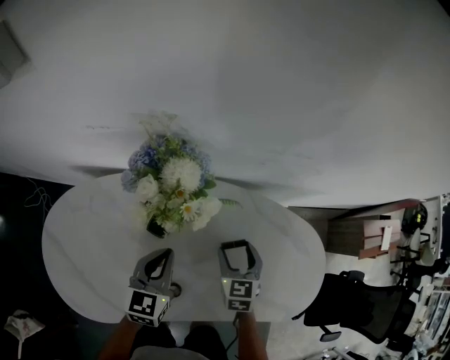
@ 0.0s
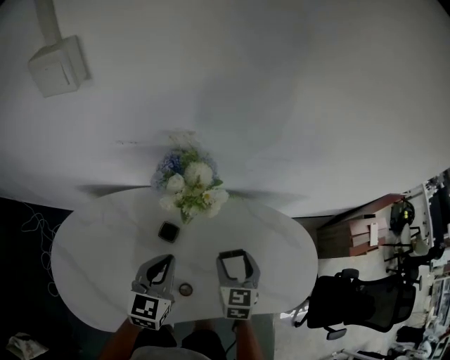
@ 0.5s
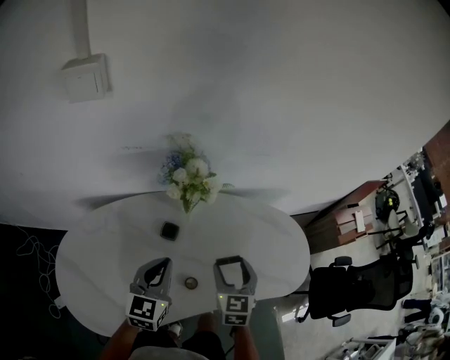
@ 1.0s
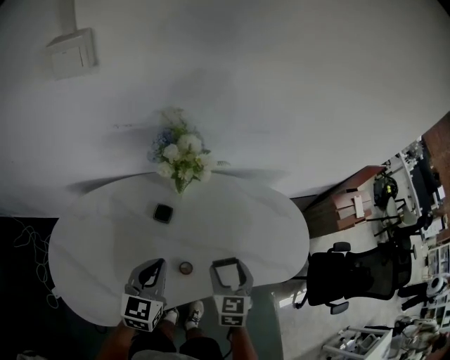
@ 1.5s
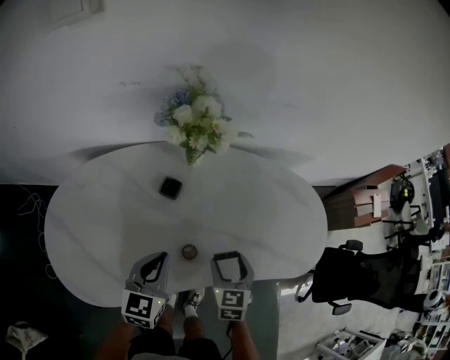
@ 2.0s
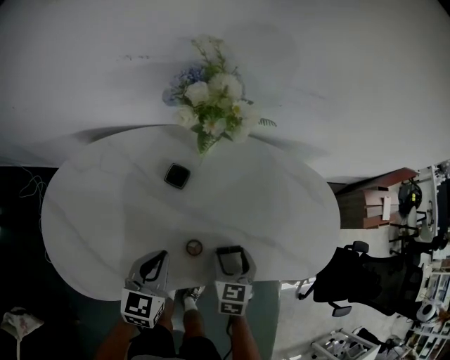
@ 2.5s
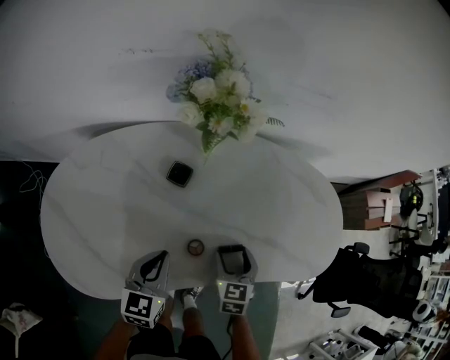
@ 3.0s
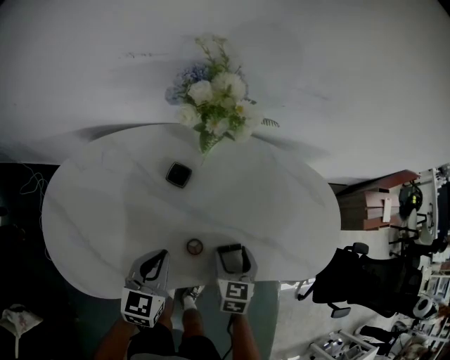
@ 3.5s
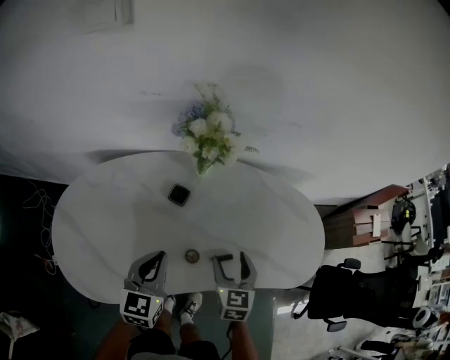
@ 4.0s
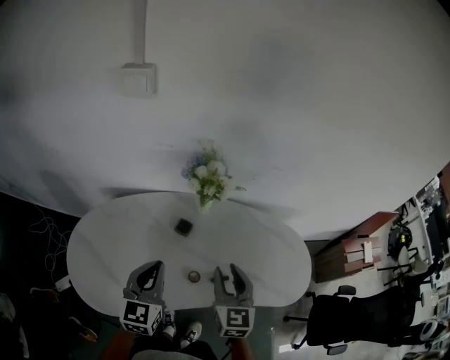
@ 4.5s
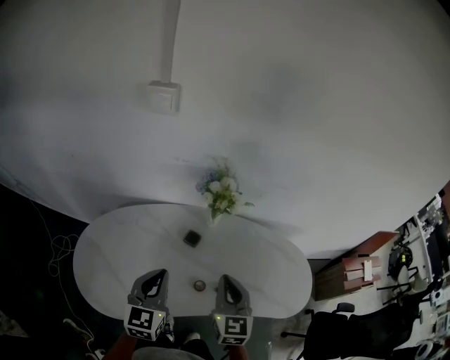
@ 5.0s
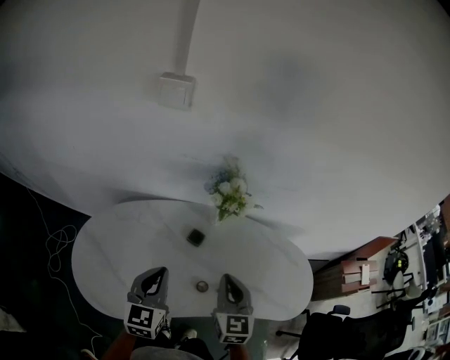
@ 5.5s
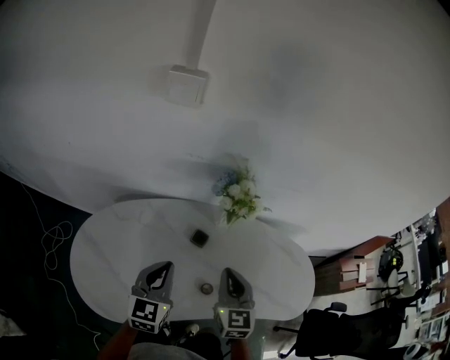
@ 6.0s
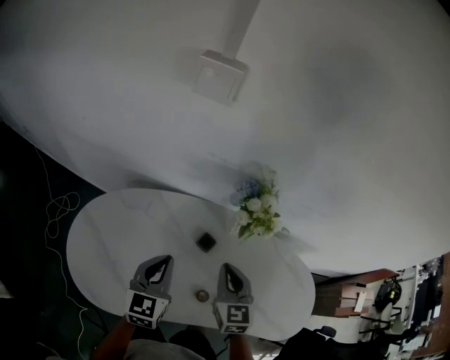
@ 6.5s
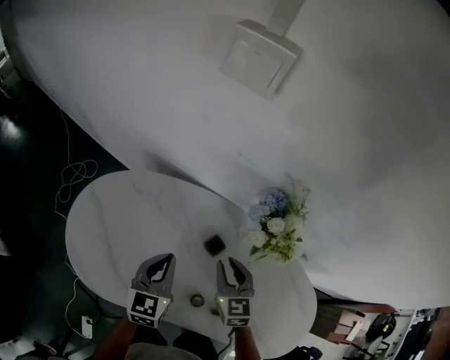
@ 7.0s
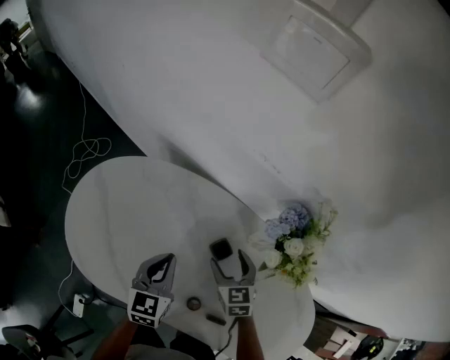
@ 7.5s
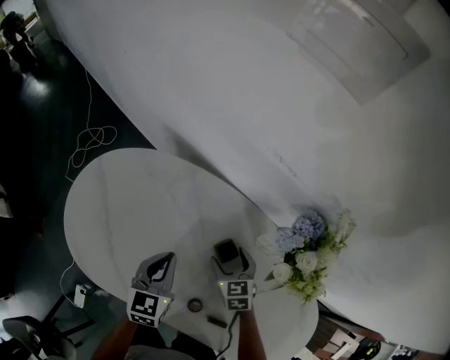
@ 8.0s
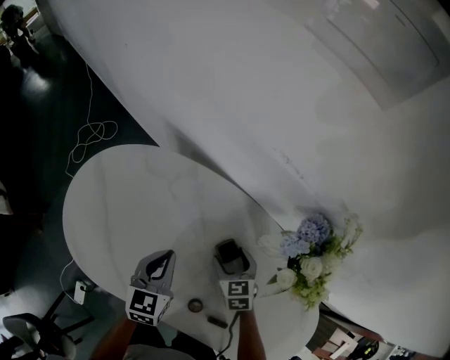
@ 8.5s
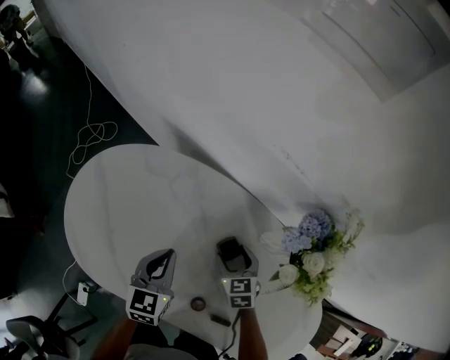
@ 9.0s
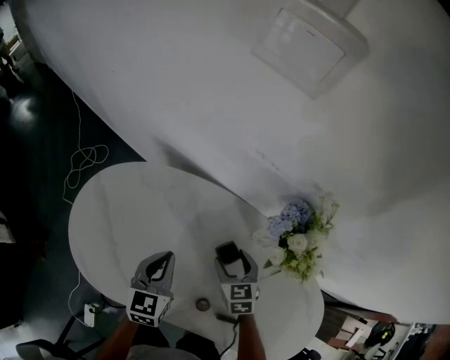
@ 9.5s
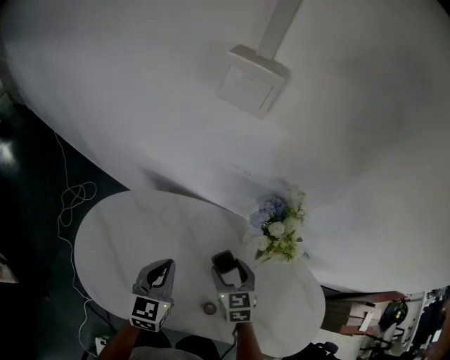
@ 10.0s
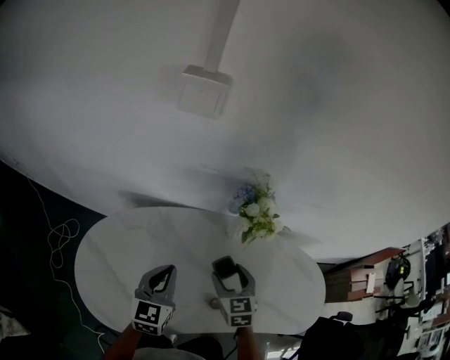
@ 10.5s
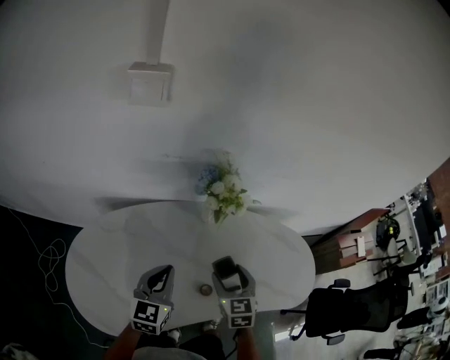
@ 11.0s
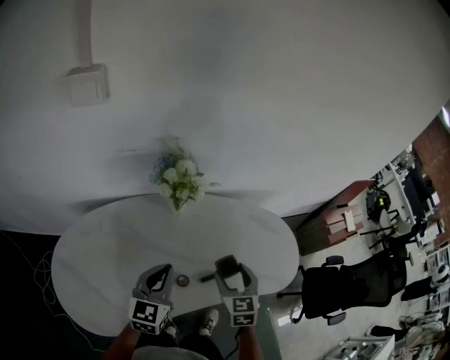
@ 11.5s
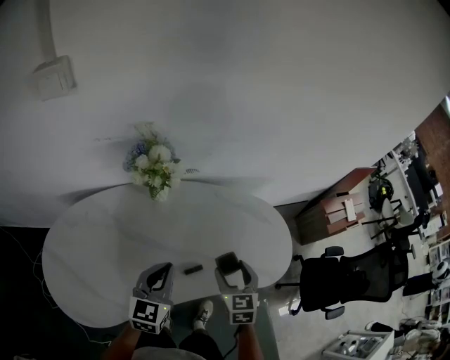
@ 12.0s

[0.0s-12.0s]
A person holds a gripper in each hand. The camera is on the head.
0.0s to 2.0s: Both grippers move backward, some 20 cm.
2.0s to 4.0s: The right gripper shifts by about 5 cm.
4.0s to 6.0s: The left gripper is displaced upward and to the left by about 15 cm. The right gripper shifts some 20 cm upward and to the left, and closes up.
6.0s to 8.0s: The left gripper shifts about 15 cm downward, and swivels approximately 40 degrees, while the right gripper is displaced downward by about 25 cm, changes its angle by about 50 degrees, and opens.
8.0s to 10.0s: Both grippers move upward, some 10 cm.
10.0s to 12.0s: The left gripper changes place by about 25 cm, and rotates approximately 40 degrees; the right gripper shifts by some 35 cm, and changes its angle by about 40 degrees.

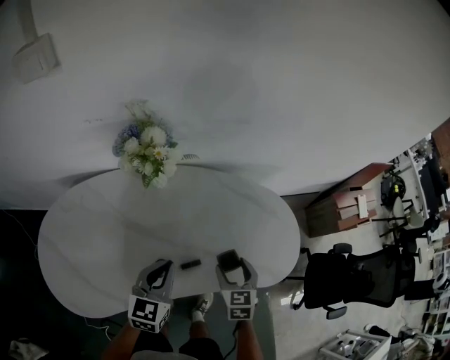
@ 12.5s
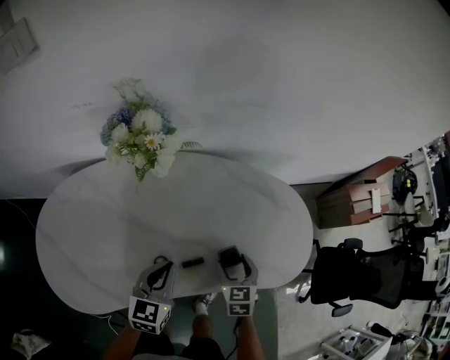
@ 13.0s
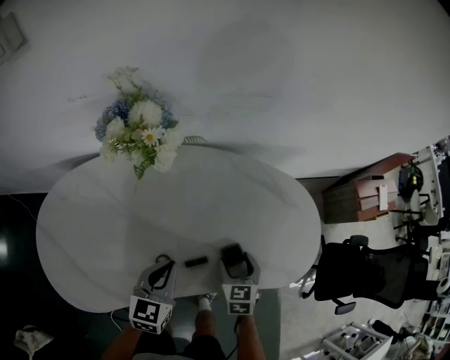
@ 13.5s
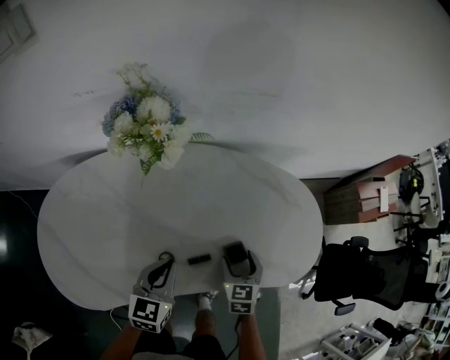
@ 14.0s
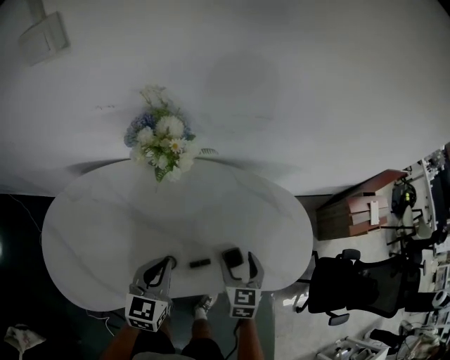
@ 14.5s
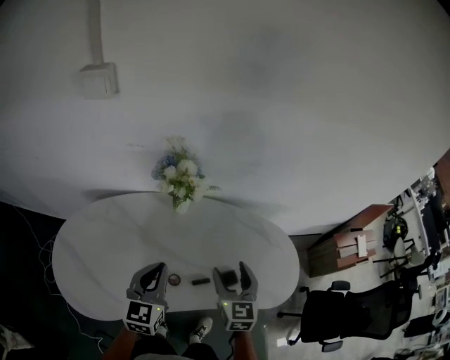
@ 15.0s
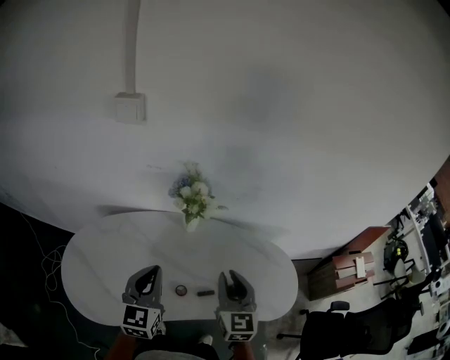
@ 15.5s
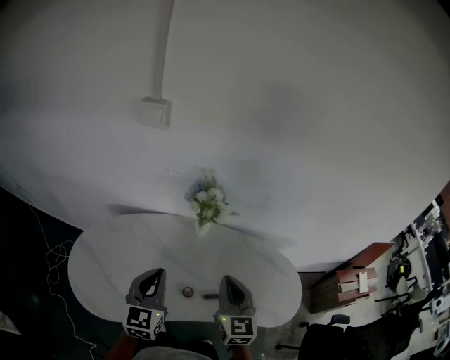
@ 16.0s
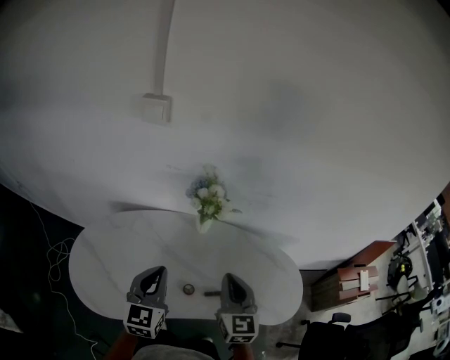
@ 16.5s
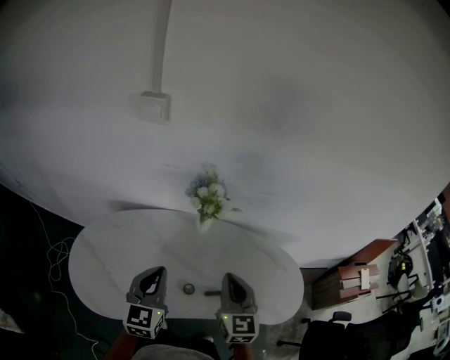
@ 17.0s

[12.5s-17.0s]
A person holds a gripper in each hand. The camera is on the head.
12.5s to 14.5s: The right gripper travels downward and back again, roughly 10 cm each way.
14.5s to 17.0s: The two grippers go about 25 cm upward and to the left. The left gripper changes its angle by approximately 20 degrees, while the right gripper turns by some 30 degrees, and closes up.

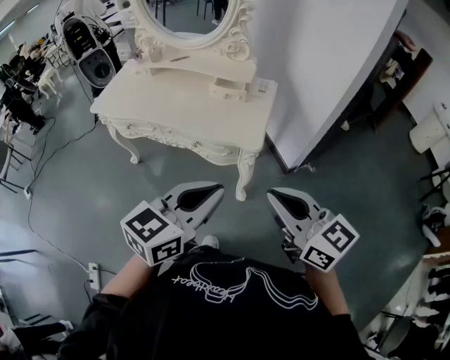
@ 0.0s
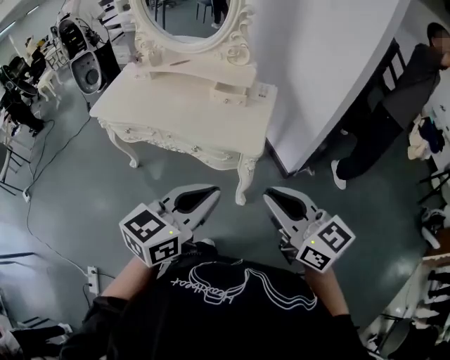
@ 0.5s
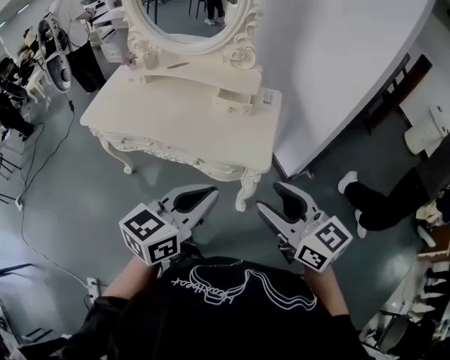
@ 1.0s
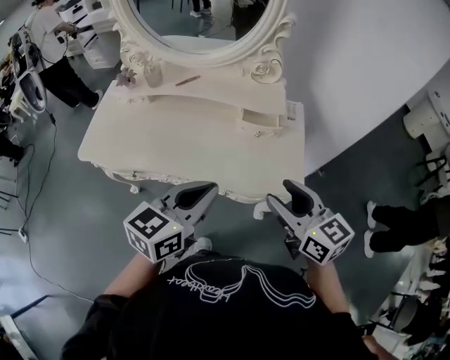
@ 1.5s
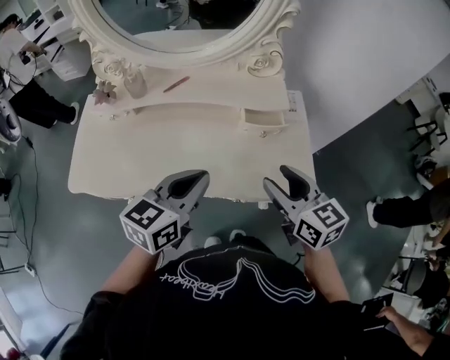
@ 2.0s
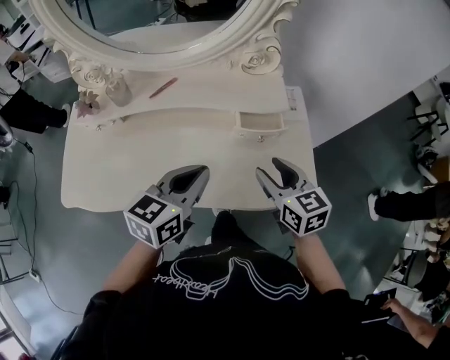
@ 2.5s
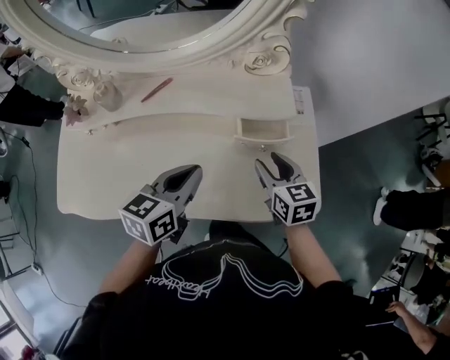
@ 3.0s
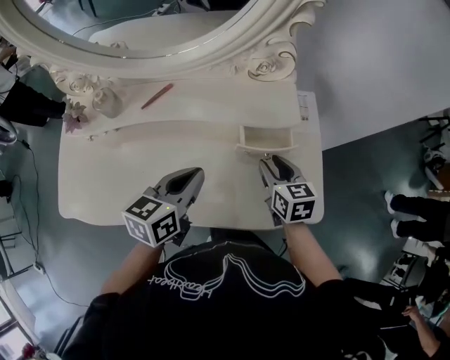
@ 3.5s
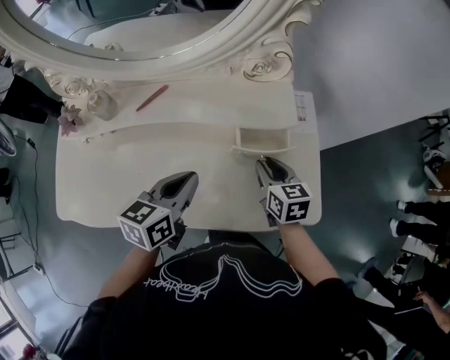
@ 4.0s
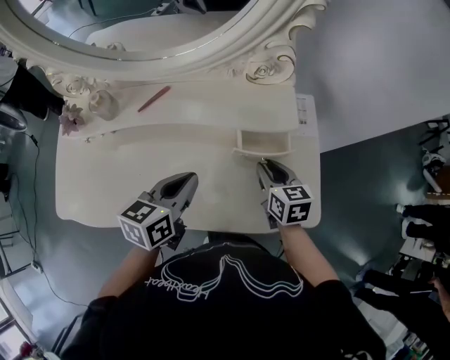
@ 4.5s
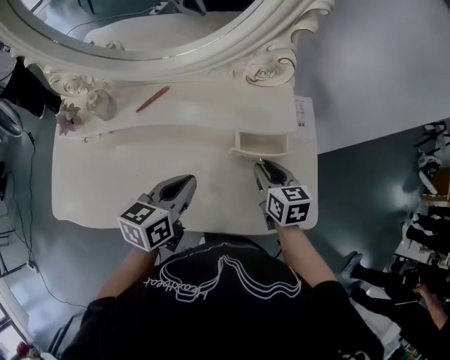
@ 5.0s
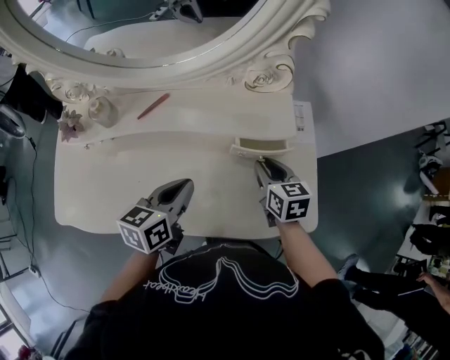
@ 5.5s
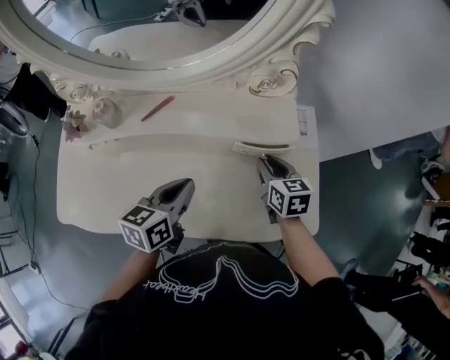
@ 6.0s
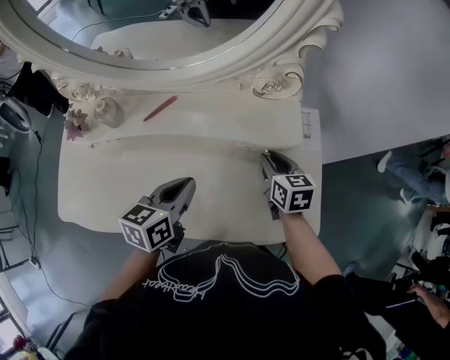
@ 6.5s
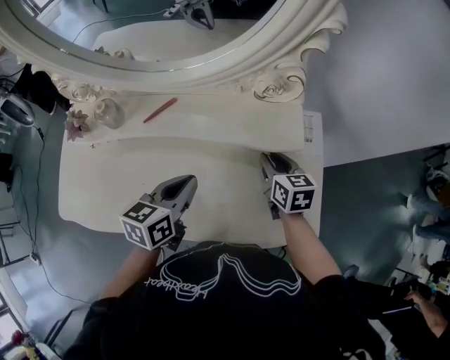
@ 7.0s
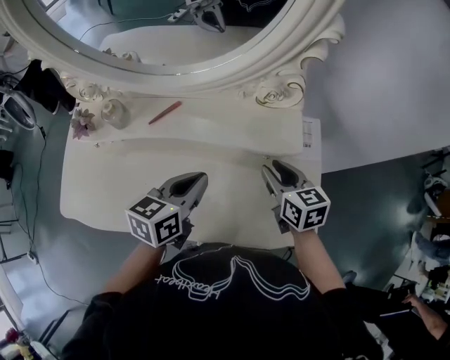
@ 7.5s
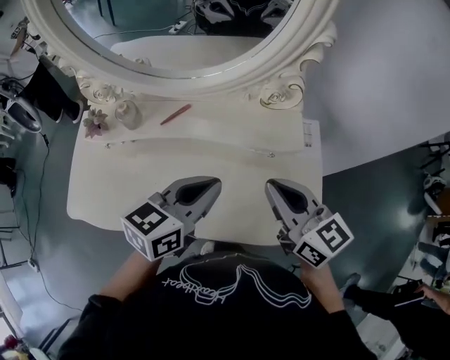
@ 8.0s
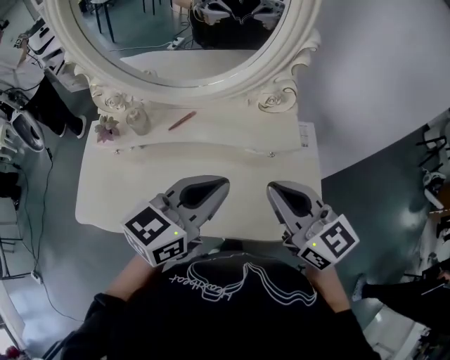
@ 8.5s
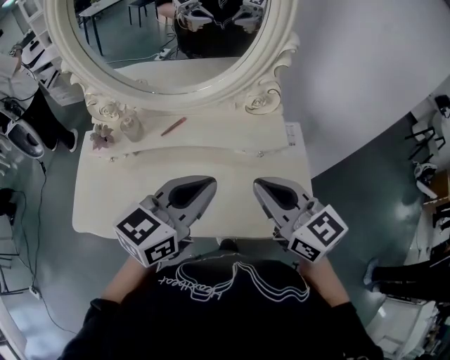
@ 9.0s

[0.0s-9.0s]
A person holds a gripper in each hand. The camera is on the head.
0.0s to 2.0s: Both grippers move forward and to the left, roughly 40 cm. The right gripper swivels some 30 degrees, and opens its fingers.
2.0s to 4.5s: The right gripper heads downward and forward, covering approximately 25 cm, turns by about 20 degrees, and closes. The left gripper shifts approximately 15 cm forward and downward.
4.5s to 7.0s: The right gripper moves forward, about 10 cm.
7.0s to 9.0s: The left gripper travels upward by about 20 cm, and changes its angle by some 30 degrees; the right gripper travels upward and backward by some 30 cm, changes its angle by approximately 30 degrees, and closes up.

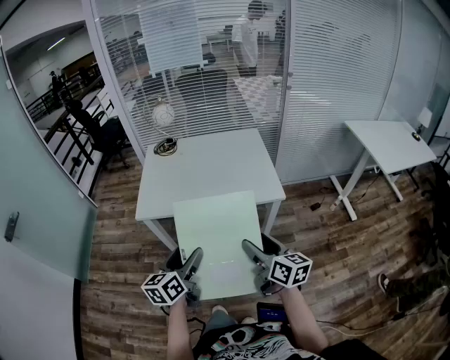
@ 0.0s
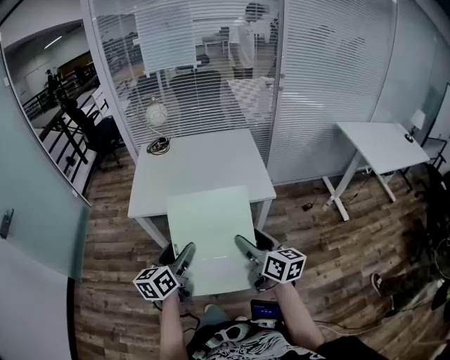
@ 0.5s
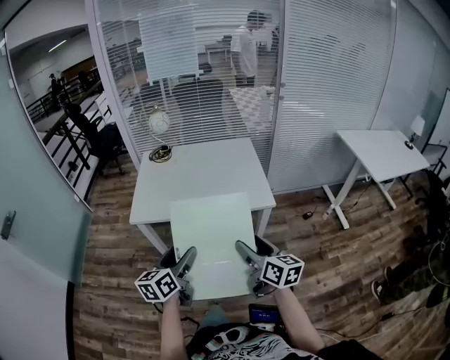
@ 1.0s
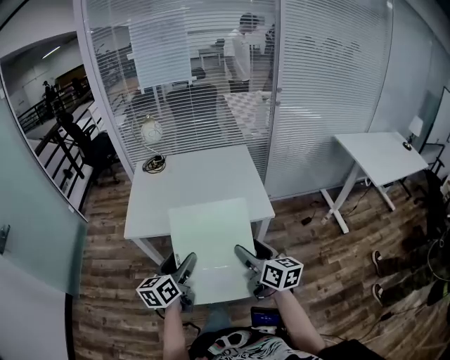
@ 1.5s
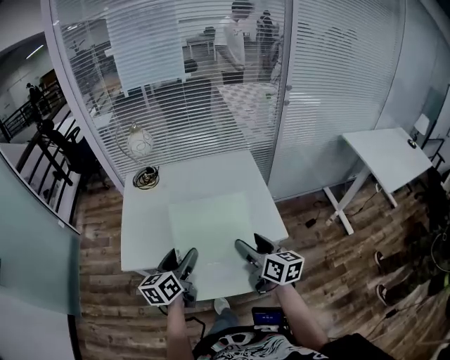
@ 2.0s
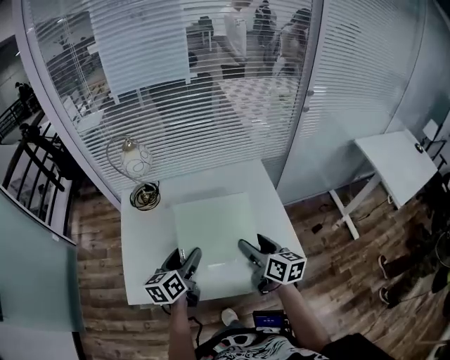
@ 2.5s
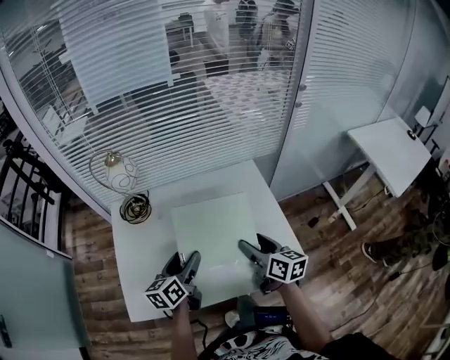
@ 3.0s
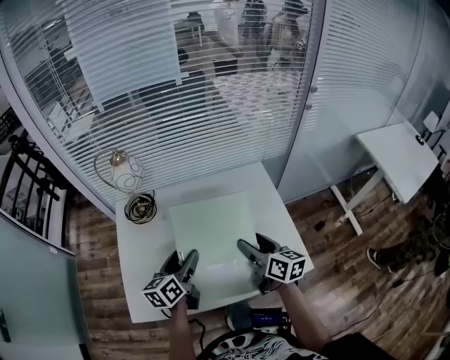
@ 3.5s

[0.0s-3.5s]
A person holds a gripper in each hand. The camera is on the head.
0.0s to 2.0s: Both grippers travel together forward, some 25 cm.
2.0s to 3.5s: Both grippers travel together forward, approximately 20 cm.
